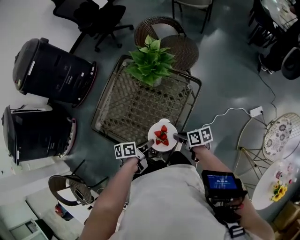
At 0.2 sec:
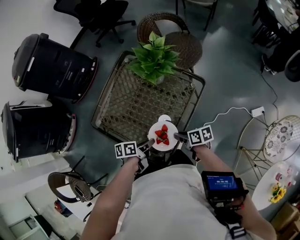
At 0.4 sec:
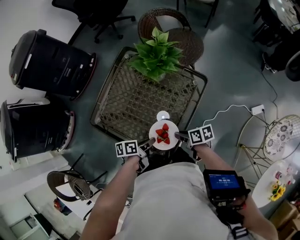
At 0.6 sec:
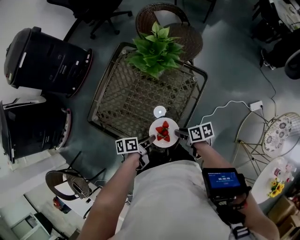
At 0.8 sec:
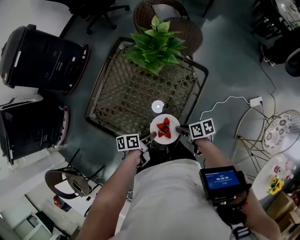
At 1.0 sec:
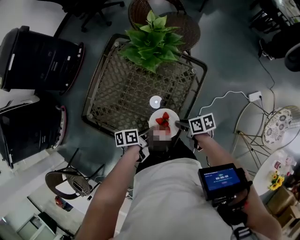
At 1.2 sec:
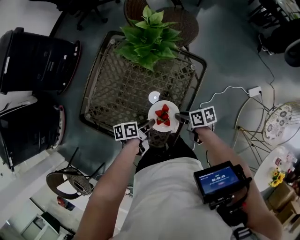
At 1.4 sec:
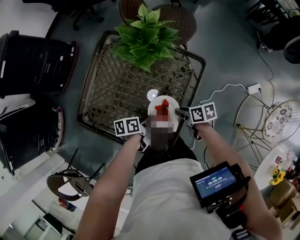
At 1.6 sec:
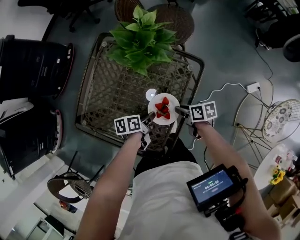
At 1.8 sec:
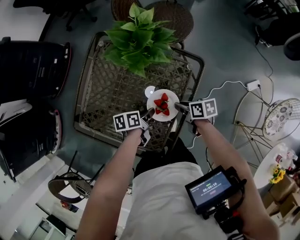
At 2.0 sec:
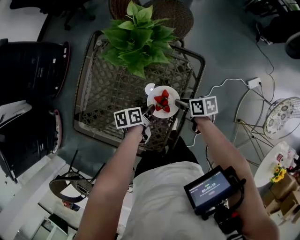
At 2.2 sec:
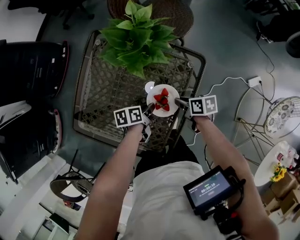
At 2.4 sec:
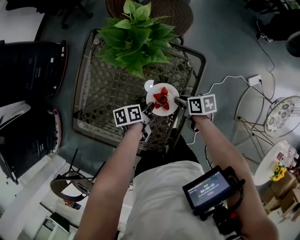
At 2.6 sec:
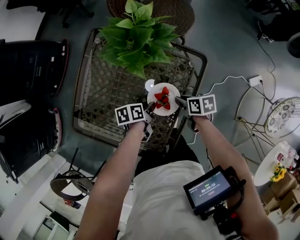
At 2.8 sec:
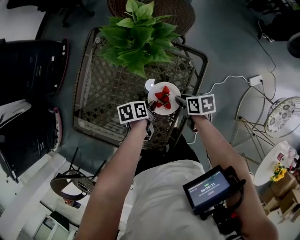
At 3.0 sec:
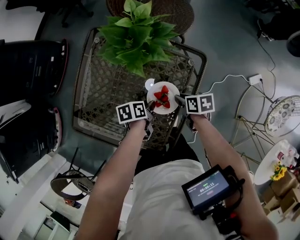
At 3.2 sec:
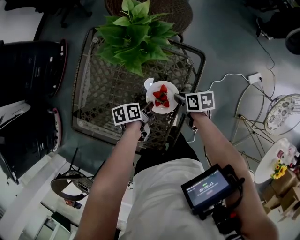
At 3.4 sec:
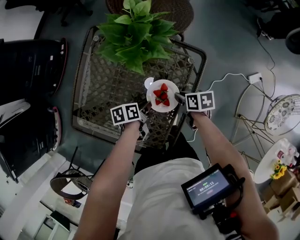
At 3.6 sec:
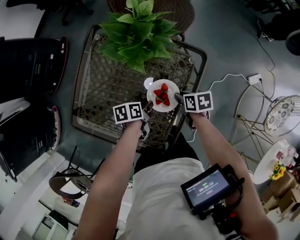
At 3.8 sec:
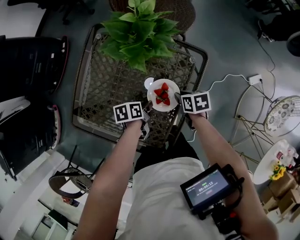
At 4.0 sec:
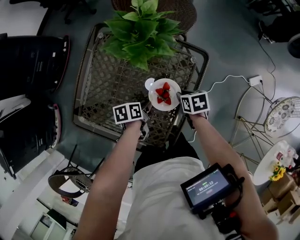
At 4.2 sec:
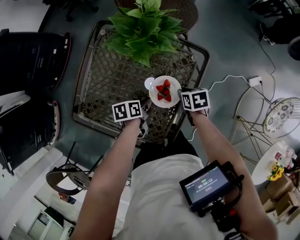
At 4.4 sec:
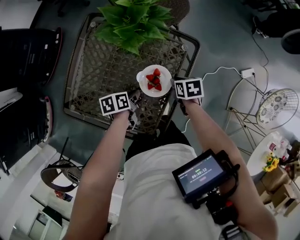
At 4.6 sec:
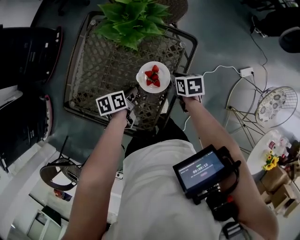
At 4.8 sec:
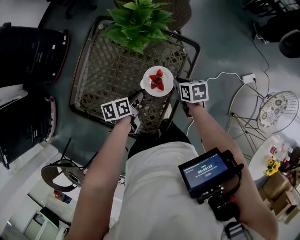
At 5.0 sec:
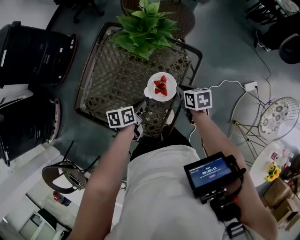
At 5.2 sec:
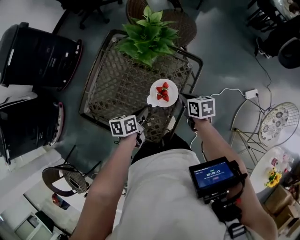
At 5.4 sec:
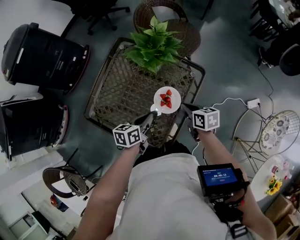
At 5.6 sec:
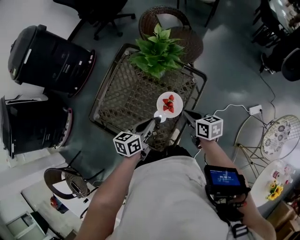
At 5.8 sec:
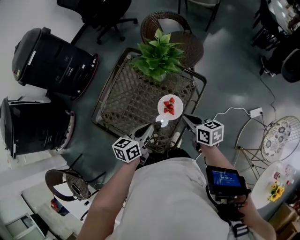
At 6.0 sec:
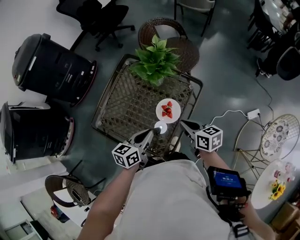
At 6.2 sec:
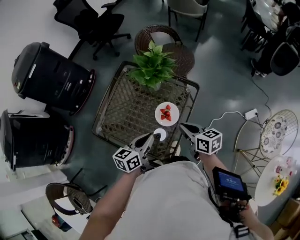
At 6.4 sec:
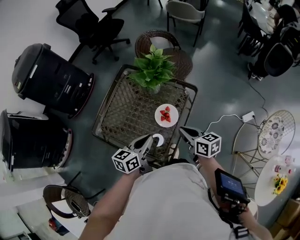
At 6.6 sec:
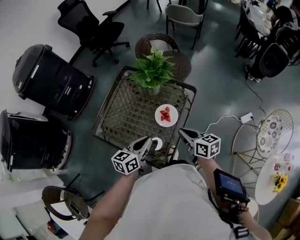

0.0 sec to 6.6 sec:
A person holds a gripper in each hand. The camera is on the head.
0.0 sec to 1.6 sec: The right gripper shifts by roughly 15 cm.
1.6 sec to 3.2 sec: The right gripper moves roughly 5 cm.
3.2 sec to 5.0 sec: The right gripper travels upward by approximately 5 cm.
5.0 sec to 6.6 sec: The right gripper shifts about 20 cm upward, and turns by approximately 30 degrees.

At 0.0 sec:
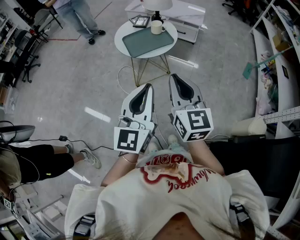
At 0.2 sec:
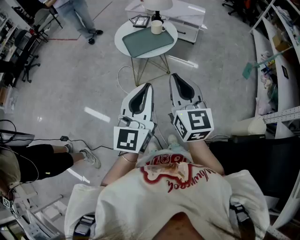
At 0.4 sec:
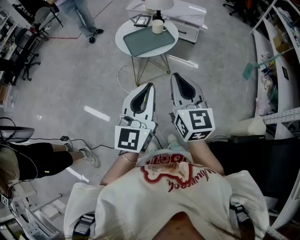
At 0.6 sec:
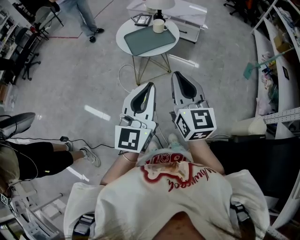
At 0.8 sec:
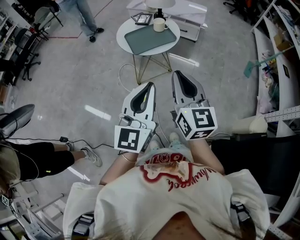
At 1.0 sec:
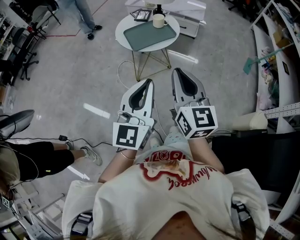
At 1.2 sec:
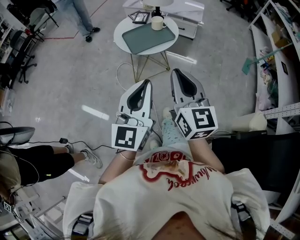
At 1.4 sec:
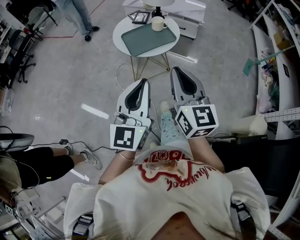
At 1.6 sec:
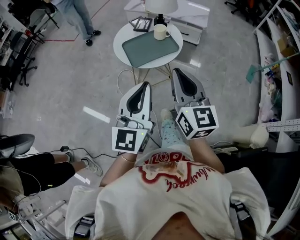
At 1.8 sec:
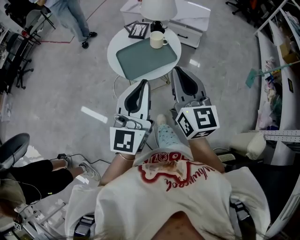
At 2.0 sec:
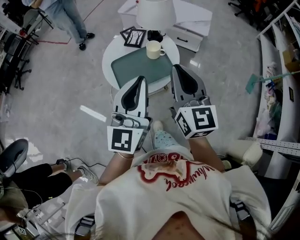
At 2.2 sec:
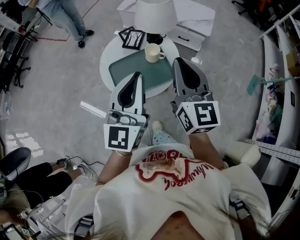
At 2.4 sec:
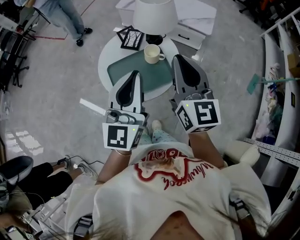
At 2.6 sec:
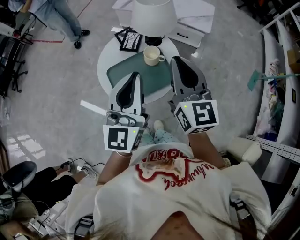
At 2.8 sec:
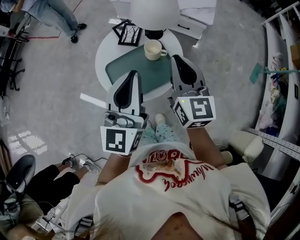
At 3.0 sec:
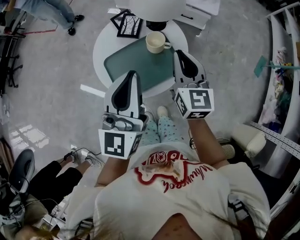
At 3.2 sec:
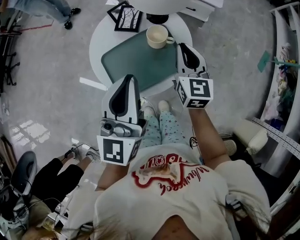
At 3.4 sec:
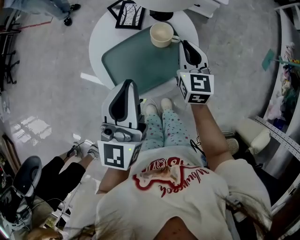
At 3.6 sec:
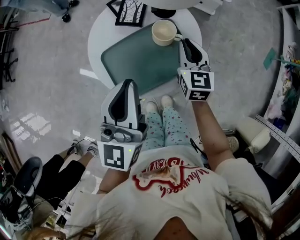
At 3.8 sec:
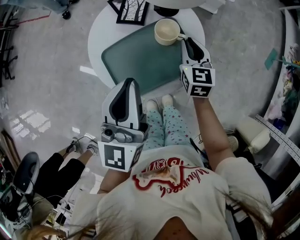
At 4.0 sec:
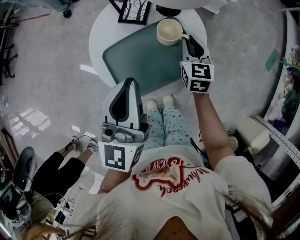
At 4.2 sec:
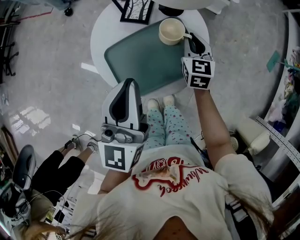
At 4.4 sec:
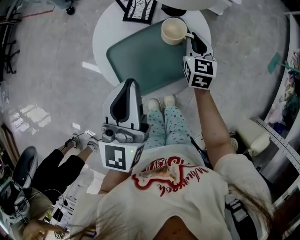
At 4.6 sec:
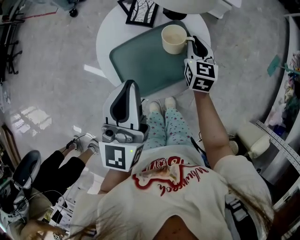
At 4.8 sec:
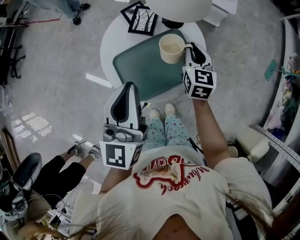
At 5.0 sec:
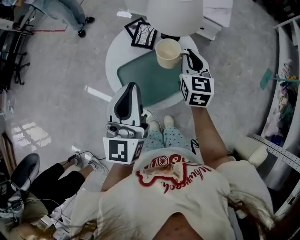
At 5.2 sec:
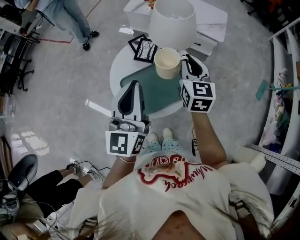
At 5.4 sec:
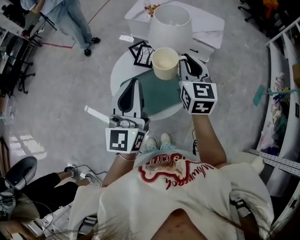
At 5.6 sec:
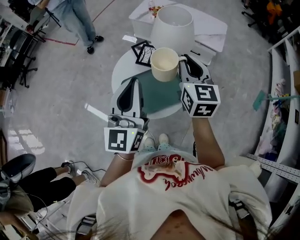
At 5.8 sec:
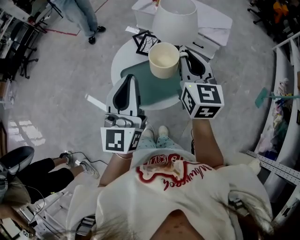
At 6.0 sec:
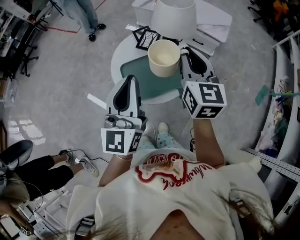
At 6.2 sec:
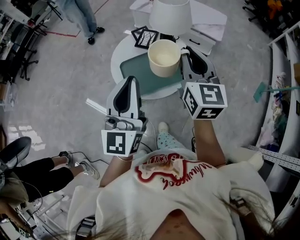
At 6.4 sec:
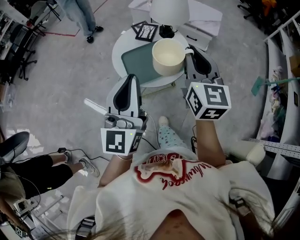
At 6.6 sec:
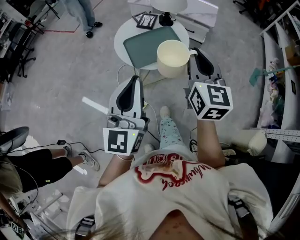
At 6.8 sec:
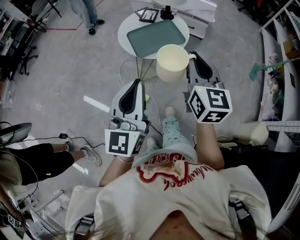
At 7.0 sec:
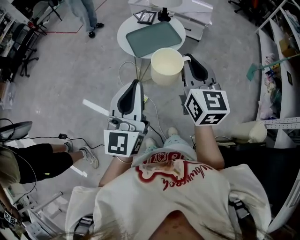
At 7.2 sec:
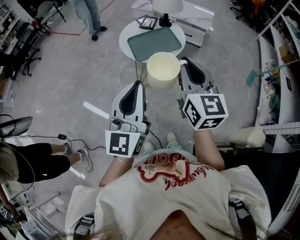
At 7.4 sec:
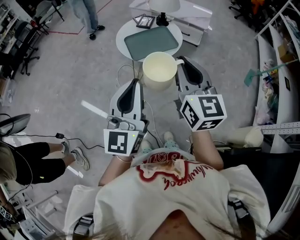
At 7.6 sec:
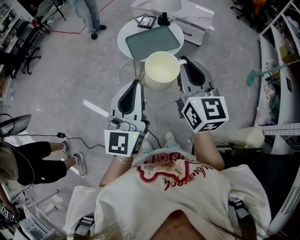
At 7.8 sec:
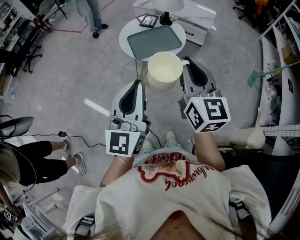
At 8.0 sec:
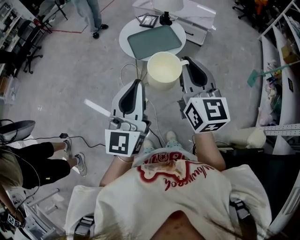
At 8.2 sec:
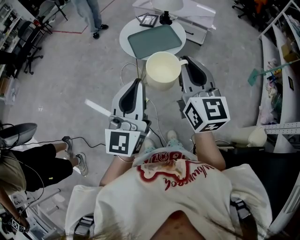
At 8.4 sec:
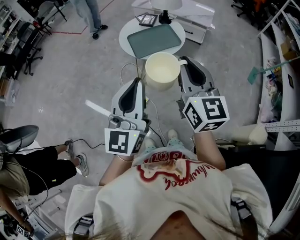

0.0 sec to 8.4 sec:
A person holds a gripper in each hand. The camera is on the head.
0.0 sec to 1.4 sec: The left gripper moves to the left, some 5 cm. Meanwhile the right gripper moves about 5 cm.
1.4 sec to 2.8 sec: The two grippers go roughly 40 cm forward.
2.8 sec to 4.2 sec: The left gripper moves downward and to the left, some 10 cm; the right gripper travels downward and forward by roughly 30 cm, and changes its angle by some 20 degrees.
4.2 sec to 5.6 sec: The right gripper is displaced upward by roughly 30 cm; the left gripper moves upward, about 10 cm.
5.6 sec to 7.0 sec: The grippers both shift backward by roughly 40 cm.
7.0 sec to 8.4 sec: There are only small adjustments of the grippers.

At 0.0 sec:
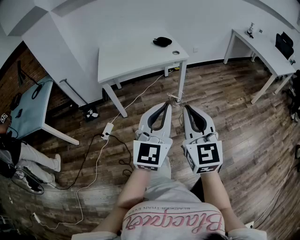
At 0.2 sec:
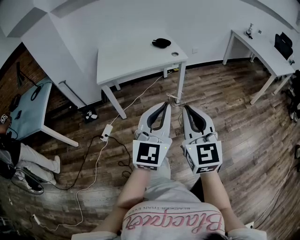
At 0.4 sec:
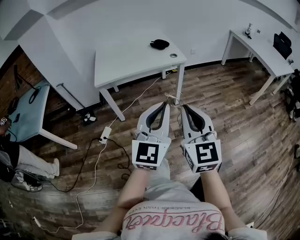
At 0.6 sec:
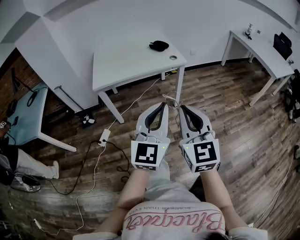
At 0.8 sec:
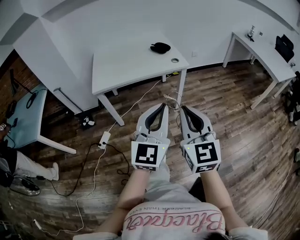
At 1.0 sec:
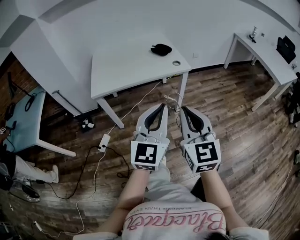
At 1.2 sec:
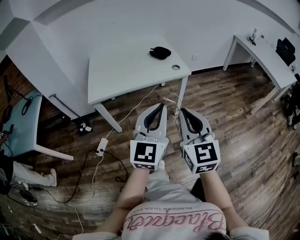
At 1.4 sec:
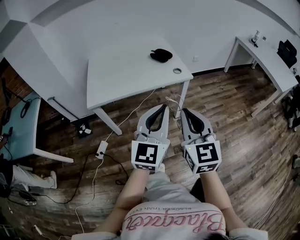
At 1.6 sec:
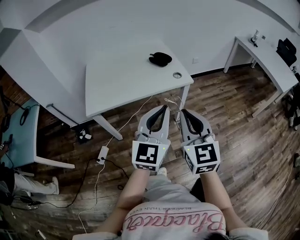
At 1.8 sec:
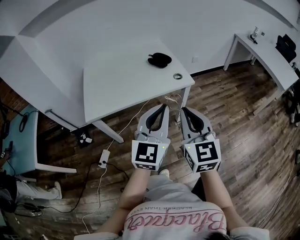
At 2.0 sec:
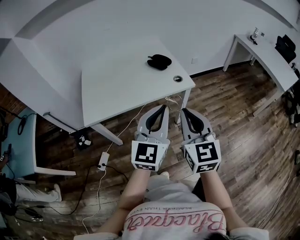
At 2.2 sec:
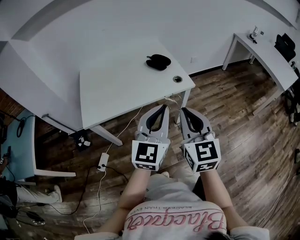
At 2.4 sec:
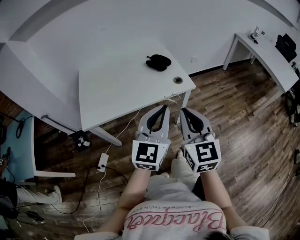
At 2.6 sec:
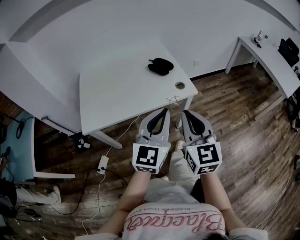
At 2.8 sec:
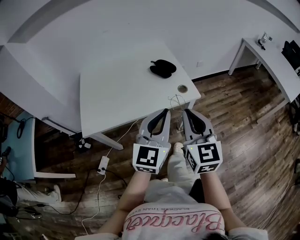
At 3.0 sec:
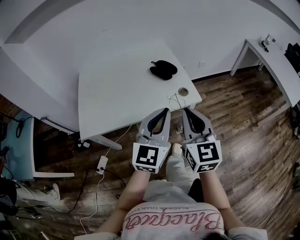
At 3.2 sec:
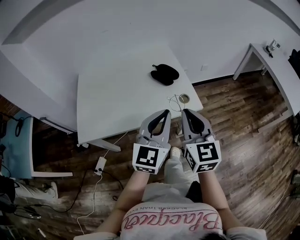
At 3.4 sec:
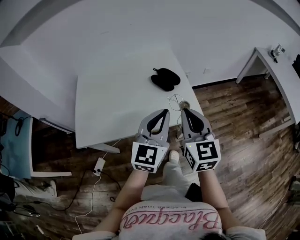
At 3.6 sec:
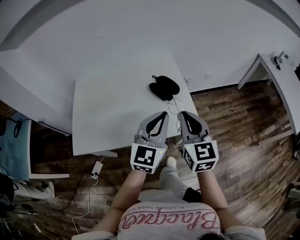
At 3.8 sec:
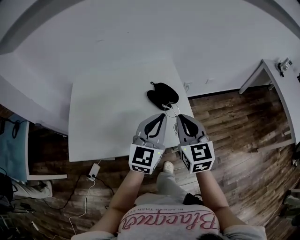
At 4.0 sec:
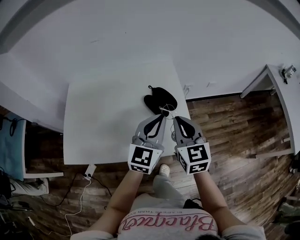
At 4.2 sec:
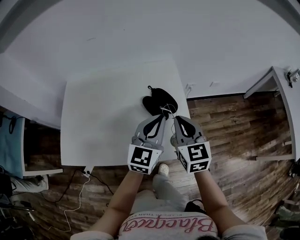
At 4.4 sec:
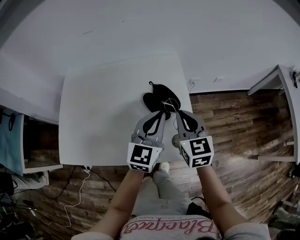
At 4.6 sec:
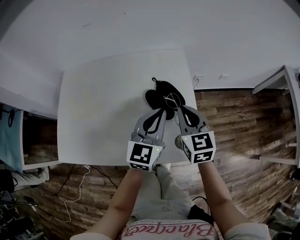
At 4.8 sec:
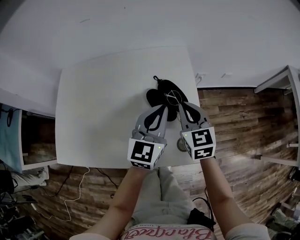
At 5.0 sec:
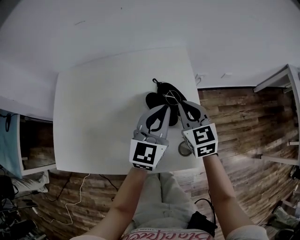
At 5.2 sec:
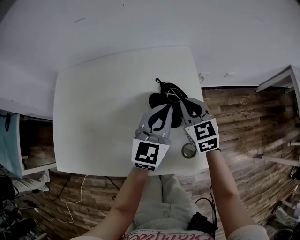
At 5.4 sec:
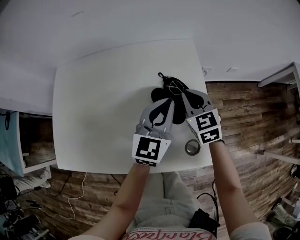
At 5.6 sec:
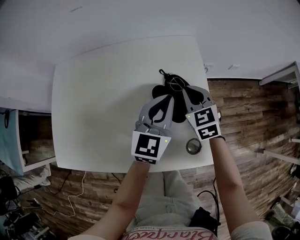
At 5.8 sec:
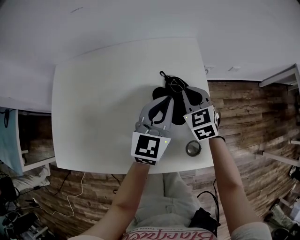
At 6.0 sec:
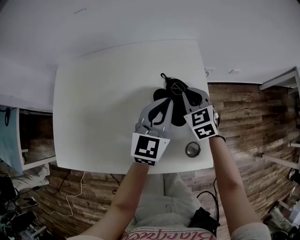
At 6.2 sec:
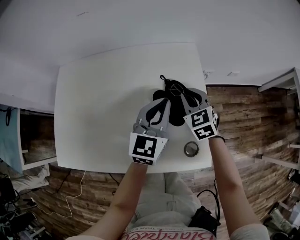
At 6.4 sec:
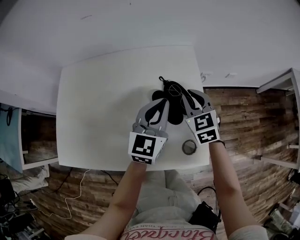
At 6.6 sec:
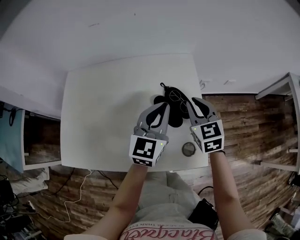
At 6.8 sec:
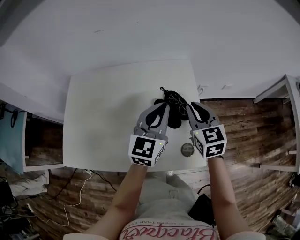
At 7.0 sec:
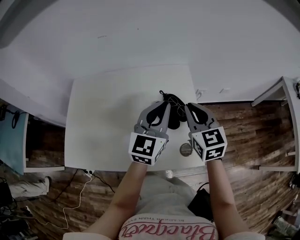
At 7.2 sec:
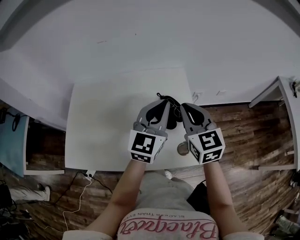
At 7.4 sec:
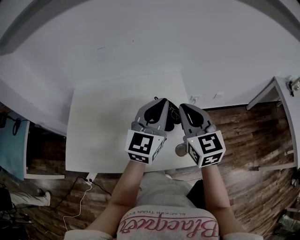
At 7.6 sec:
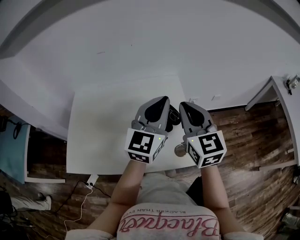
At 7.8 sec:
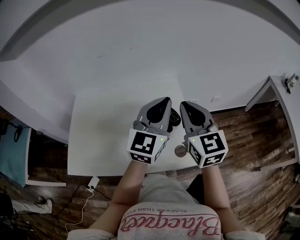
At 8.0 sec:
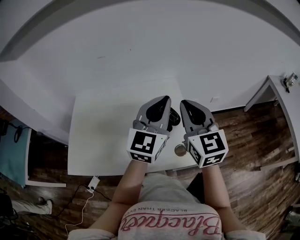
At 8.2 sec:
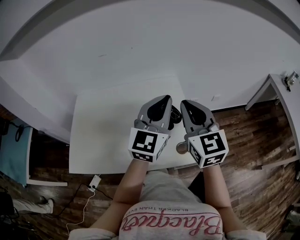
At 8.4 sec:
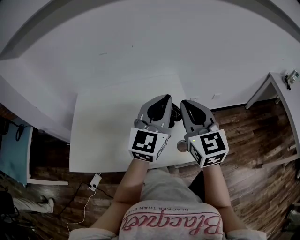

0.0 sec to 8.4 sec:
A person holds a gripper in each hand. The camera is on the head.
0.0 sec to 1.4 sec: The two grippers go approximately 25 cm forward.
1.4 sec to 2.8 sec: Both grippers travel together forward, approximately 20 cm.
2.8 sec to 4.2 sec: Both grippers move forward, about 35 cm. The right gripper changes its angle by some 20 degrees.
4.2 sec to 5.6 sec: The right gripper shifts approximately 20 cm forward and downward, and changes its angle by some 20 degrees; the left gripper moves forward and downward, some 15 cm.
5.6 sec to 7.0 sec: The left gripper heads upward, covering roughly 10 cm; the right gripper goes some 20 cm upward and backward.
7.0 sec to 8.4 sec: Both grippers move upward and backward, some 15 cm.
